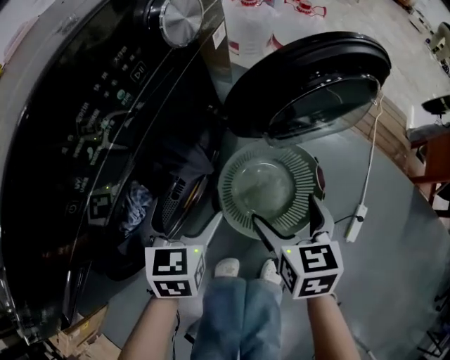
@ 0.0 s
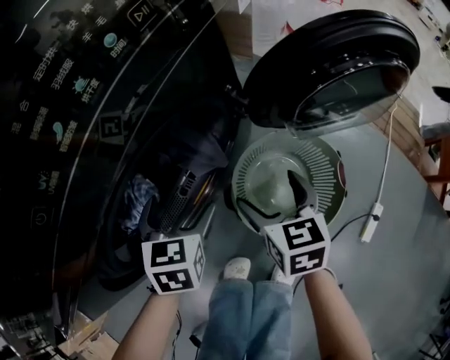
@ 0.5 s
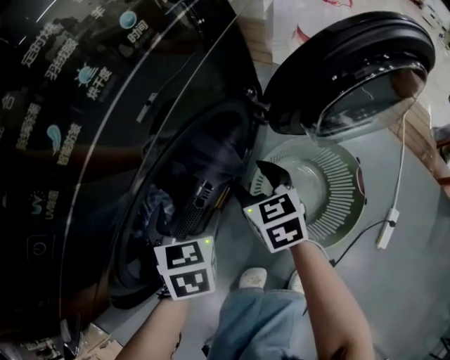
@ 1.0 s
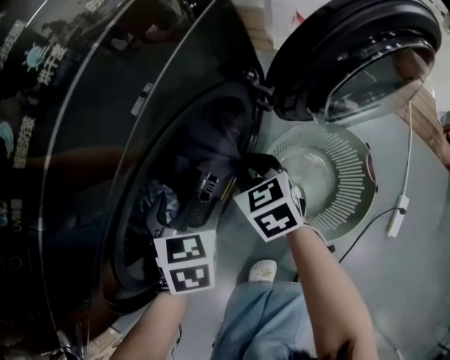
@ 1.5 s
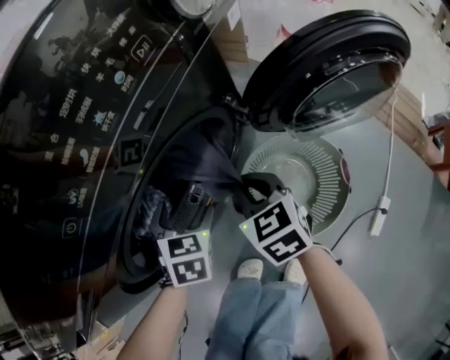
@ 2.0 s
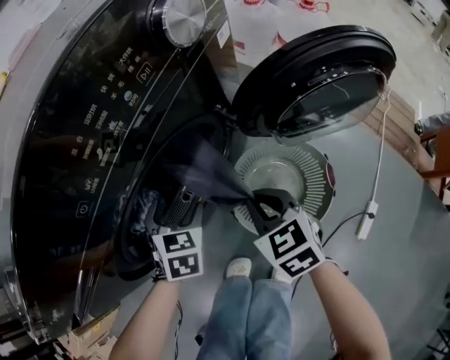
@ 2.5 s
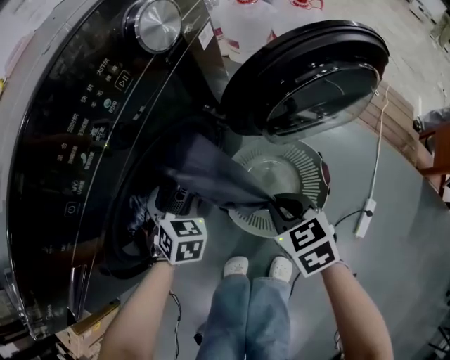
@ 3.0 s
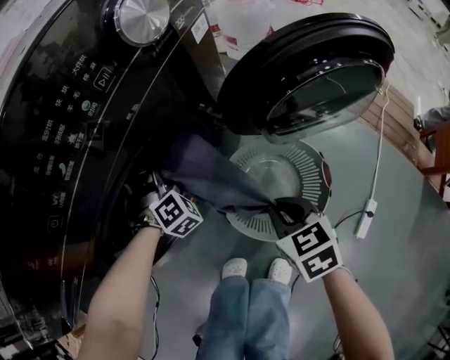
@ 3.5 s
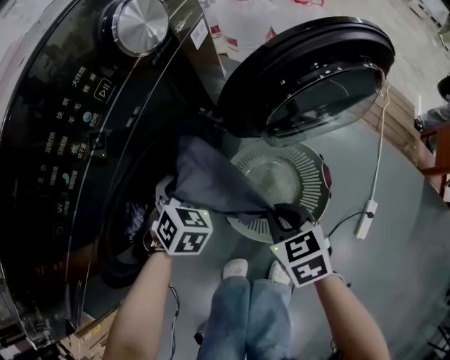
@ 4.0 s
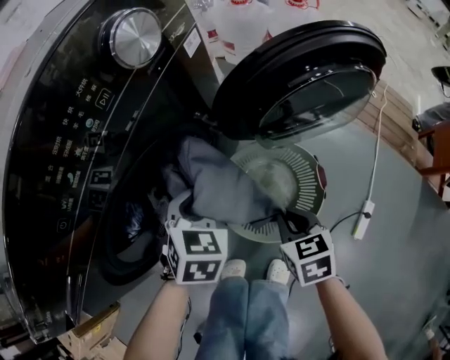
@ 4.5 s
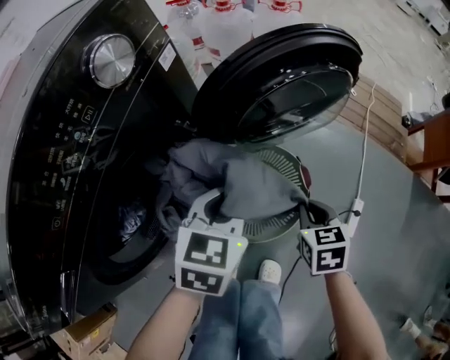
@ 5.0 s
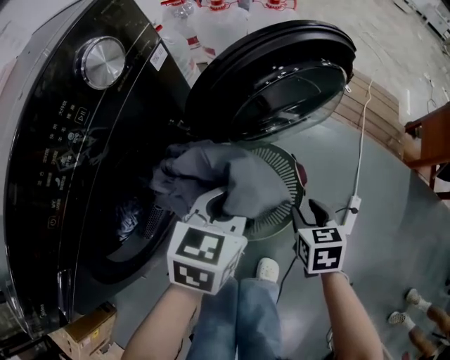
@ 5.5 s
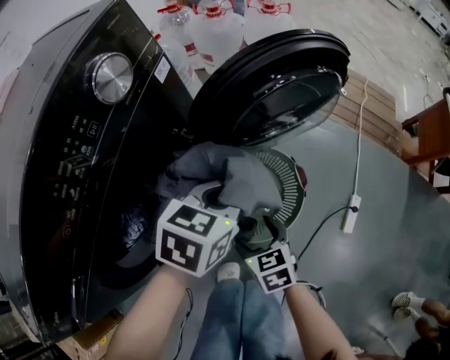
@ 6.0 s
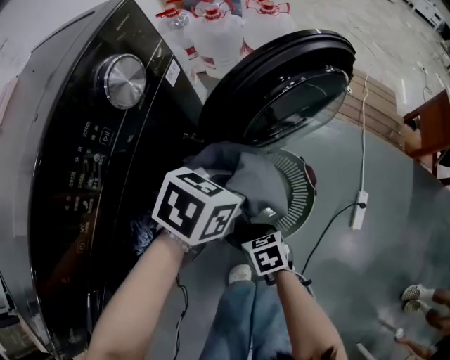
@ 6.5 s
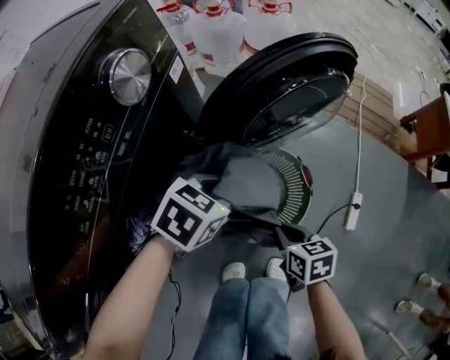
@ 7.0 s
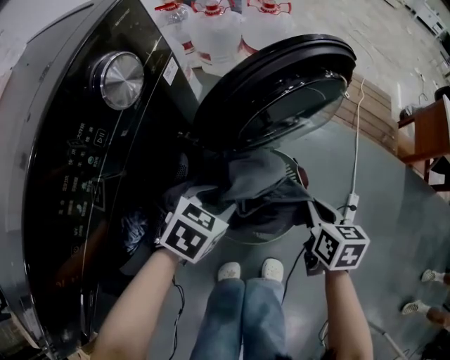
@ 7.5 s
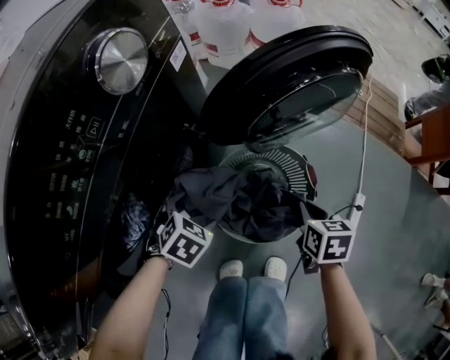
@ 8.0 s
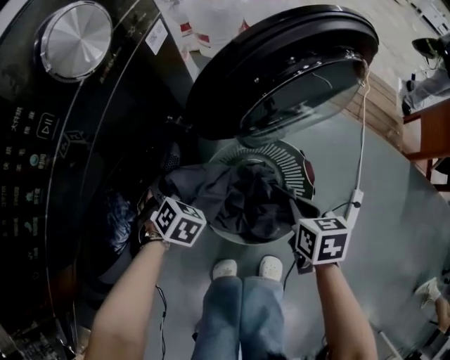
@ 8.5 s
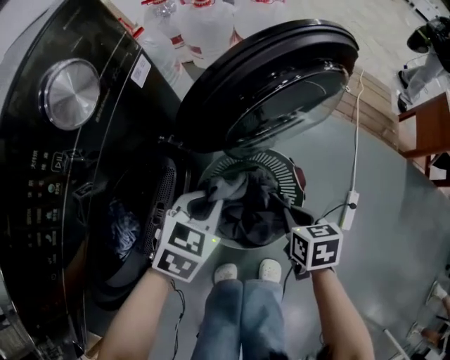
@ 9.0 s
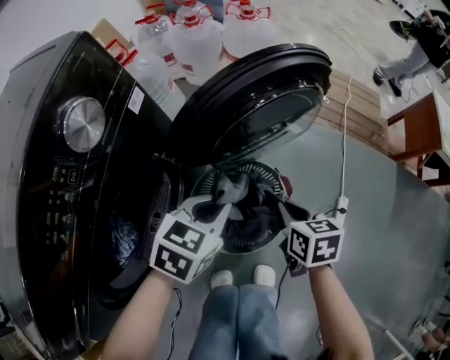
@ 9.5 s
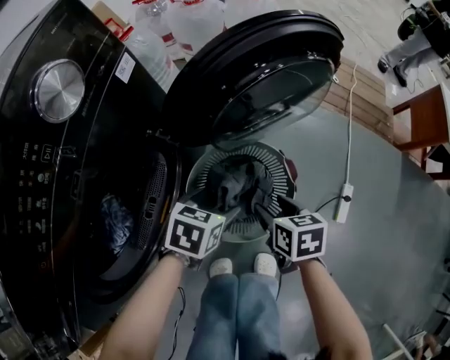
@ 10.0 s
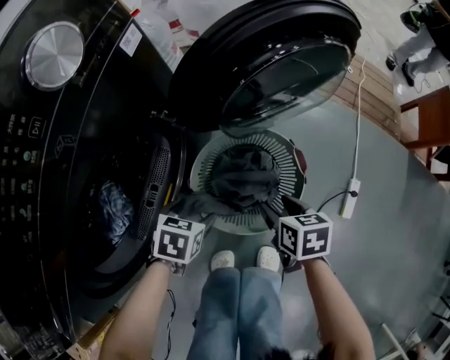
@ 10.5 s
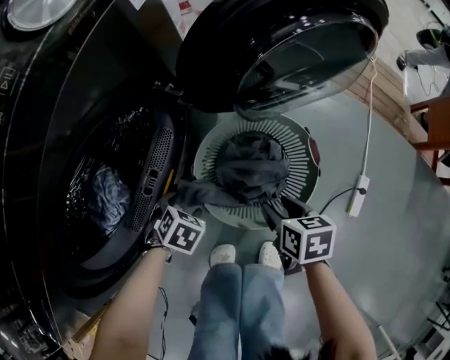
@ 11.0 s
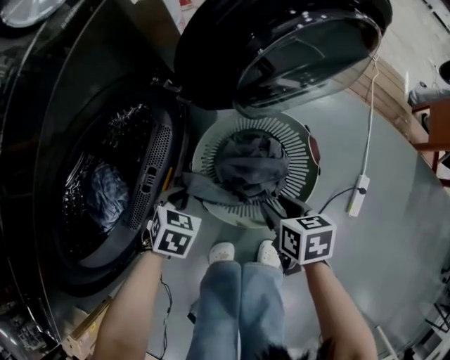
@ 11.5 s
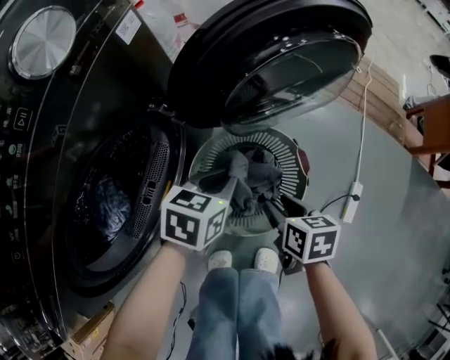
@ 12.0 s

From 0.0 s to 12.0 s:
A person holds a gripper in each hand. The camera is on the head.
From 0.0 s to 2.0 s: The left gripper goes about 10 cm to the left and downward; the right gripper moves to the left and forward, roughly 15 cm, changes its angle by approximately 30 degrees, and closes its fingers.
From 2.0 s to 4.0 s: The right gripper travels backward and to the right by approximately 15 cm, while the left gripper moves to the right, about 5 cm, rotates roughly 30 degrees, and closes its fingers.
From 4.0 s to 6.0 s: The right gripper opens. Meanwhile the left gripper ends up roughly 25 cm from where it was, and turns by approximately 50 degrees.
From 6.0 s to 8.0 s: The left gripper goes approximately 20 cm downward, to the left and backward, turns by about 30 degrees, and opens. Meanwhile the right gripper shifts about 15 cm to the right and forward, turns by approximately 20 degrees, and closes up.
From 8.0 s to 10.0 s: The right gripper goes upward and returns, about 5 cm each way, and opens its fingers. The left gripper swings up and down, some 20 cm each way, with 2 reversals, changes its angle by some 30 degrees, and closes and opens again.
From 10.0 s to 12.0 s: The left gripper reaches some 15 cm downward, then returns, and closes up.

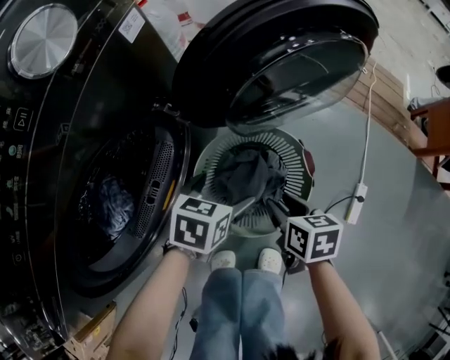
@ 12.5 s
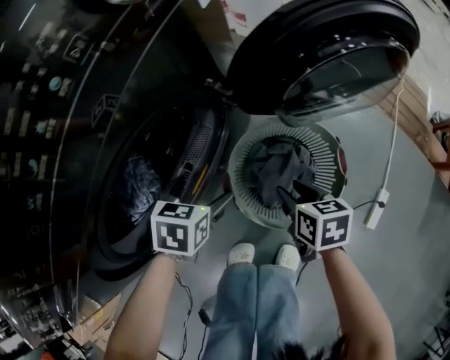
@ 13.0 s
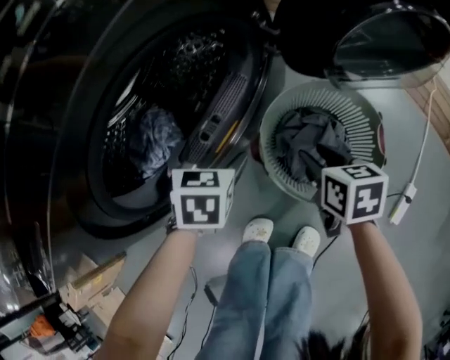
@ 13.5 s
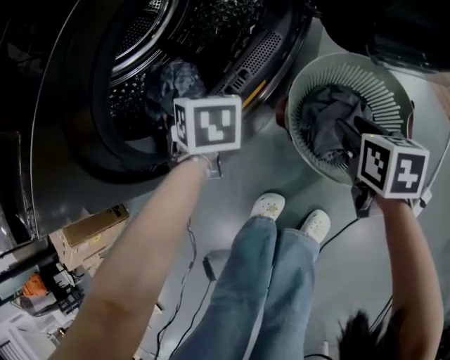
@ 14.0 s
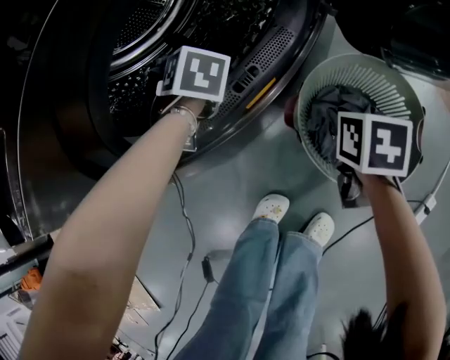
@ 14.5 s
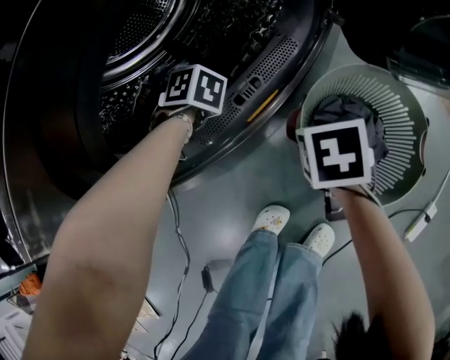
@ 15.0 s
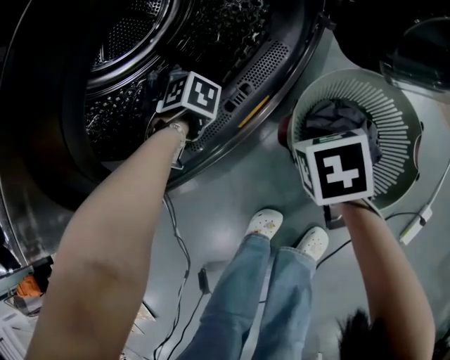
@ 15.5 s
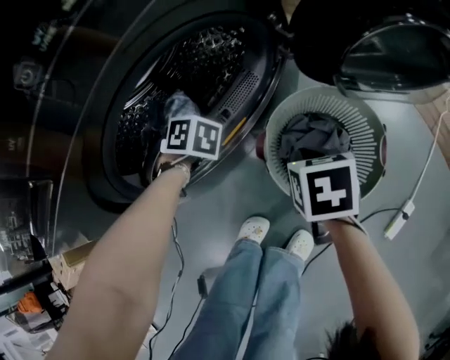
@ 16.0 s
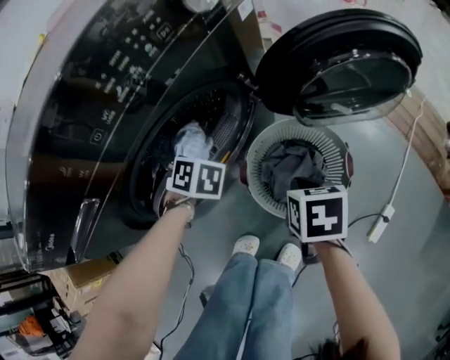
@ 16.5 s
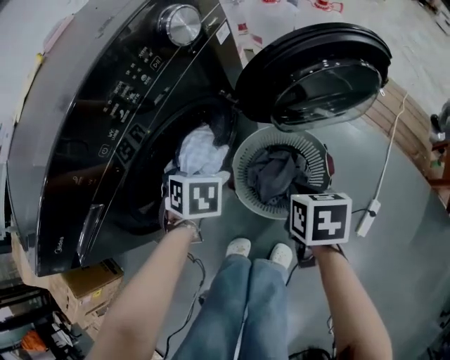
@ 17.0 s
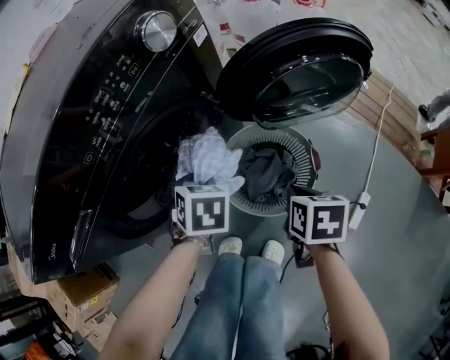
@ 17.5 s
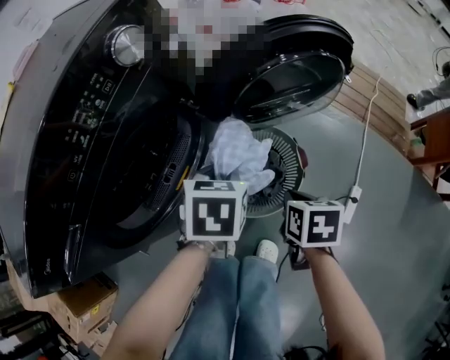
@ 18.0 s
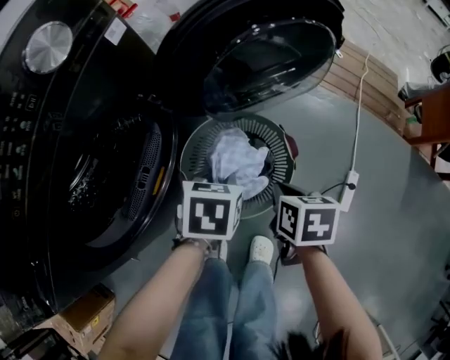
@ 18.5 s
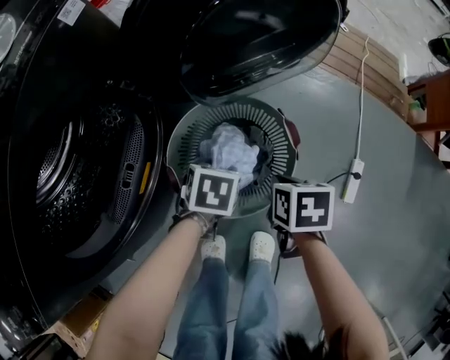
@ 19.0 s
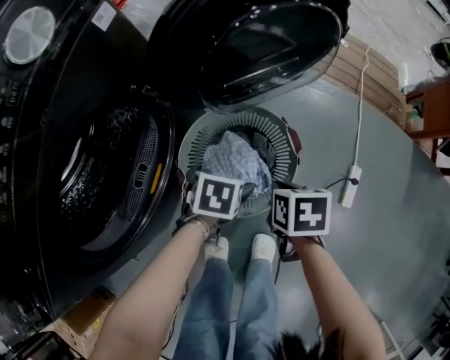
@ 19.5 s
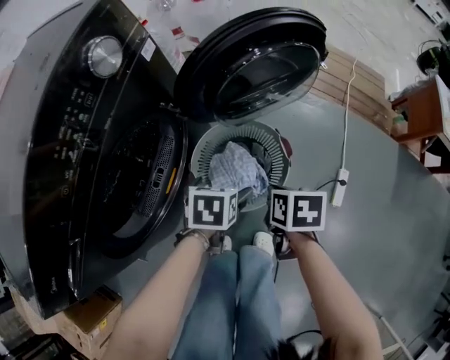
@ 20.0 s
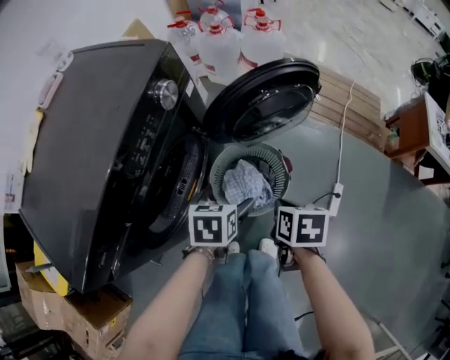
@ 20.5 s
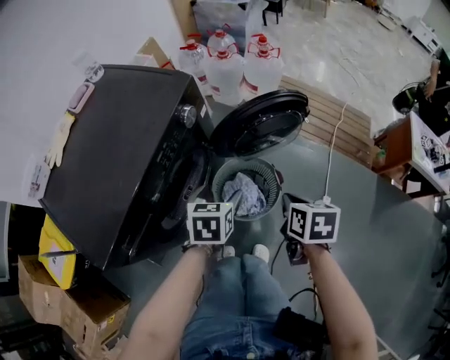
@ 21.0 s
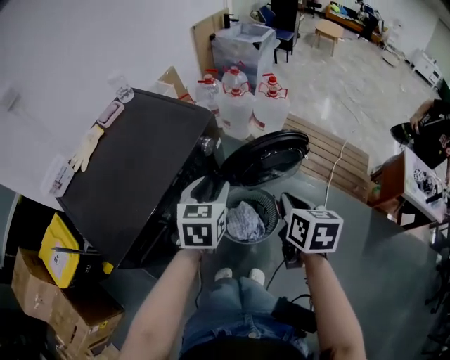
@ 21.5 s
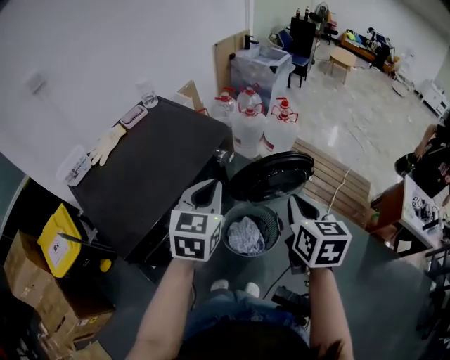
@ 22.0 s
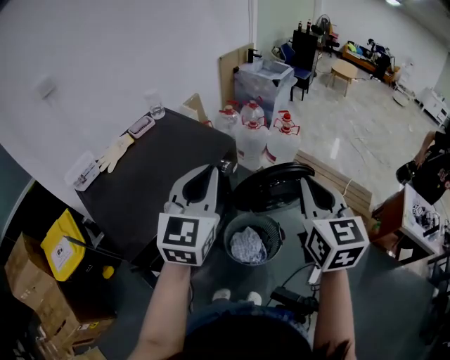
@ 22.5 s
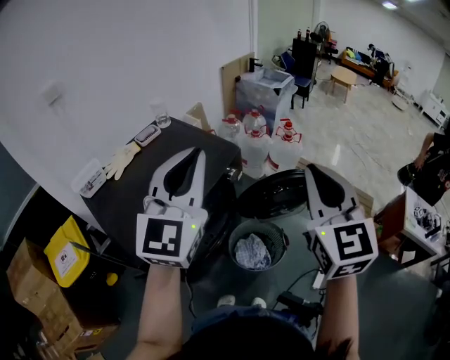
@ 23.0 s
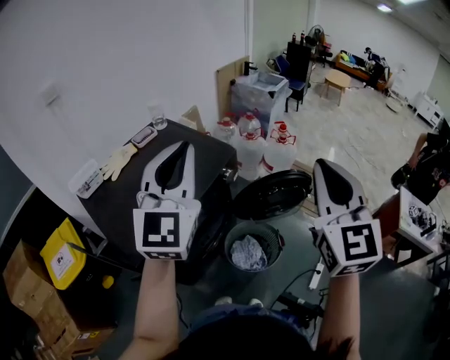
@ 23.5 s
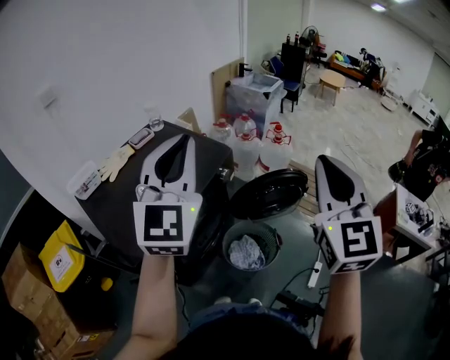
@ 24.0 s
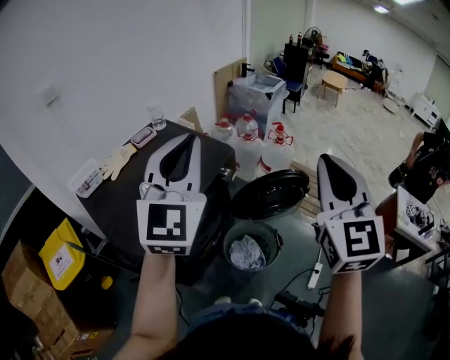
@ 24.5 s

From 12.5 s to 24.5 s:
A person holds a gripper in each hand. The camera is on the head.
From 12.5 s to 14.5 s: The right gripper ends up approximately 15 cm from where it was, and swivels about 20 degrees. The left gripper ends up some 35 cm from where it was, and changes its angle by some 60 degrees.
From 14.5 s to 16.5 s: The left gripper heads backward and upward, covering roughly 10 cm, and closes its fingers. The right gripper moves upward and backward, some 15 cm.
From 16.5 s to 18.5 s: The right gripper ends up about 15 cm from where it was, and swivels about 20 degrees, while the left gripper reaches roughly 10 cm upward, then returns, and changes its angle by approximately 50 degrees.
From 18.5 s to 20.5 s: Both grippers move upward, approximately 15 cm. The left gripper opens up.
From 20.5 s to 22.5 s: The two grippers go roughly 50 cm upward. The right gripper points its fingers roughly 50 degrees further upward. Meanwhile the left gripper points its fingers approximately 60 degrees further upward, and closes.
From 22.5 s to 24.5 s: The left gripper moves upward, about 10 cm, and turns by roughly 20 degrees, while the right gripper moves upward and backward, roughly 15 cm, and swivels roughly 20 degrees.

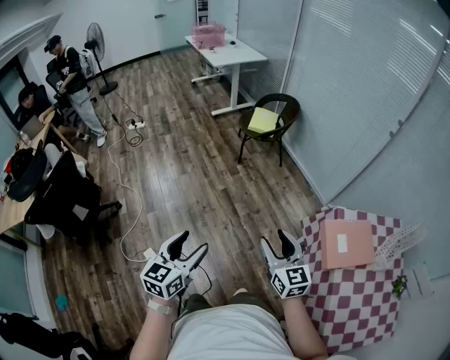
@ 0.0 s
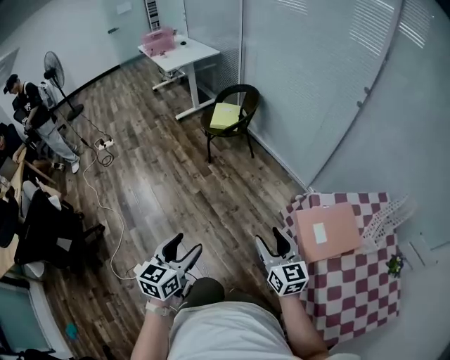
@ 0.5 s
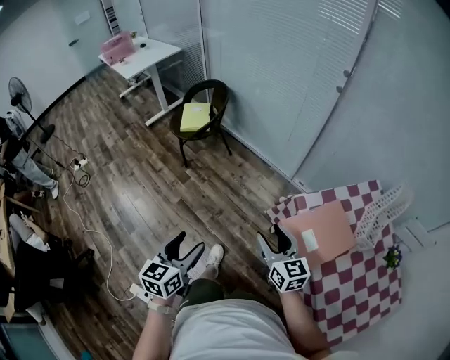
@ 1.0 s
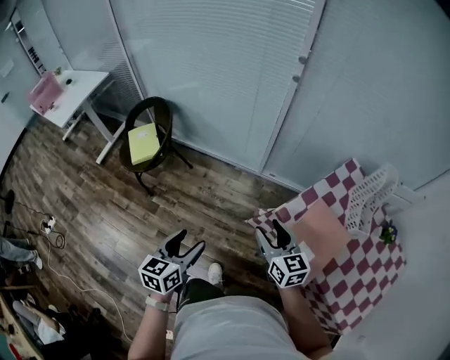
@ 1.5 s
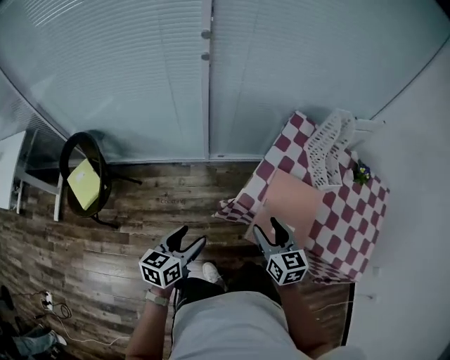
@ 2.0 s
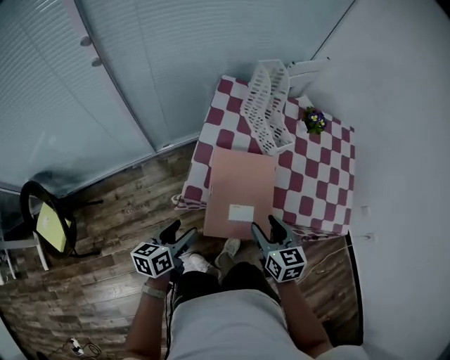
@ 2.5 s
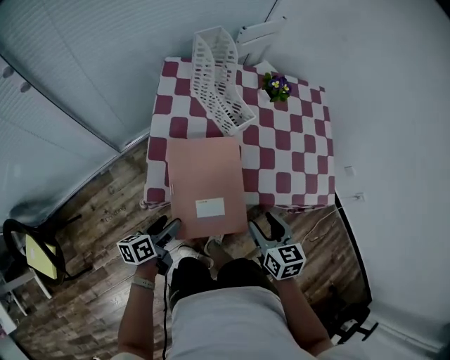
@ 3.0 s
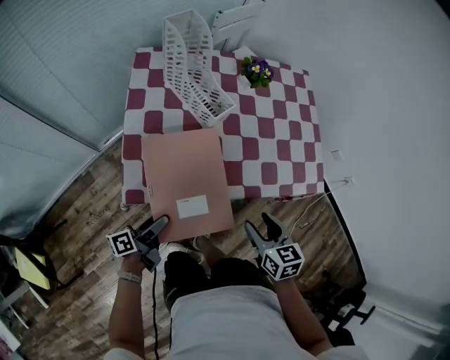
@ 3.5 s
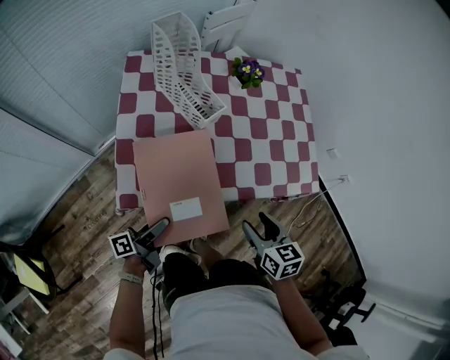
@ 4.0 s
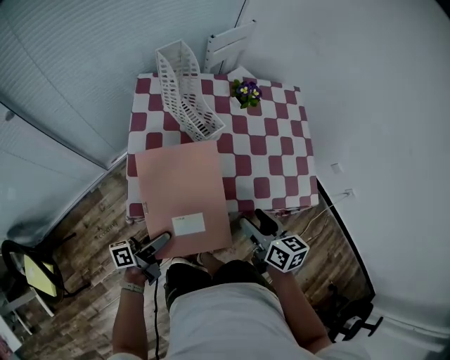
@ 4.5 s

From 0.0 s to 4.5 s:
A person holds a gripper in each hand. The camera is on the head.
From 0.0 s to 2.0 s: The pair of grippers is taken approximately 50 cm. The left gripper turns by some 70 degrees. Meanwhile the right gripper changes its angle by approximately 70 degrees.
From 2.0 s to 4.5 s: The left gripper shifts by roughly 30 cm, and changes its angle by about 60 degrees, while the right gripper moves approximately 30 cm, and rotates approximately 40 degrees.
